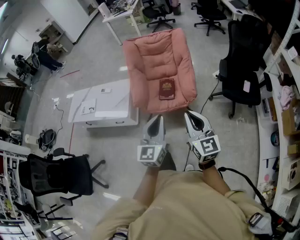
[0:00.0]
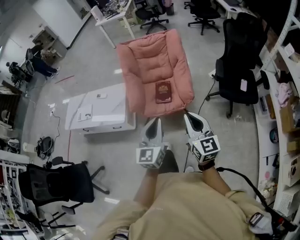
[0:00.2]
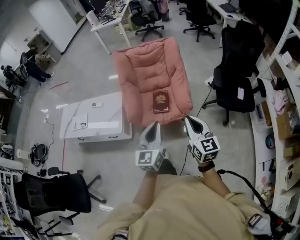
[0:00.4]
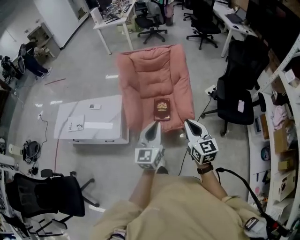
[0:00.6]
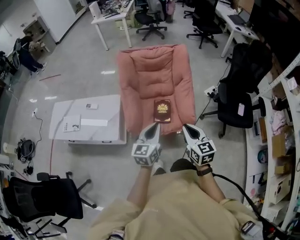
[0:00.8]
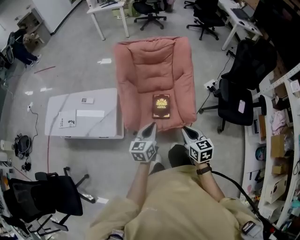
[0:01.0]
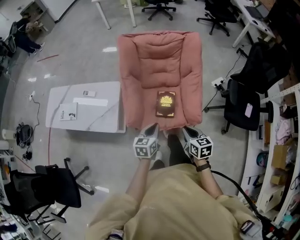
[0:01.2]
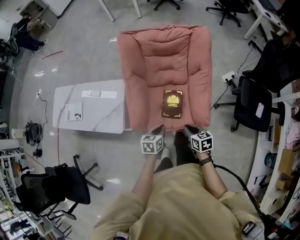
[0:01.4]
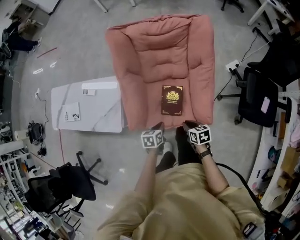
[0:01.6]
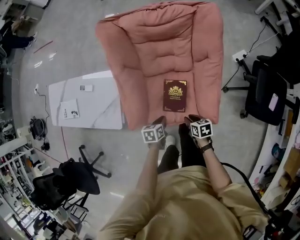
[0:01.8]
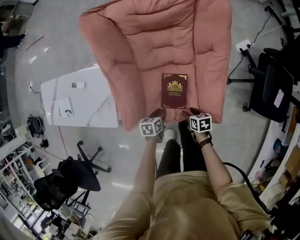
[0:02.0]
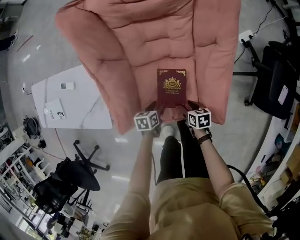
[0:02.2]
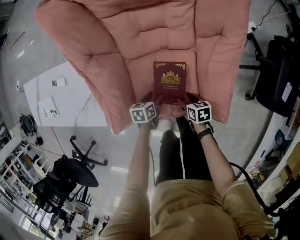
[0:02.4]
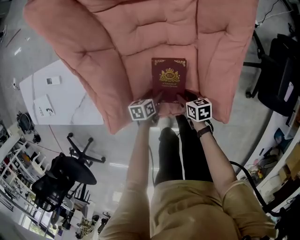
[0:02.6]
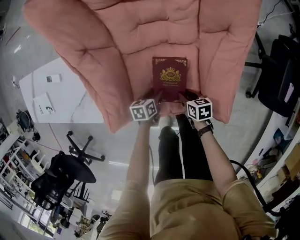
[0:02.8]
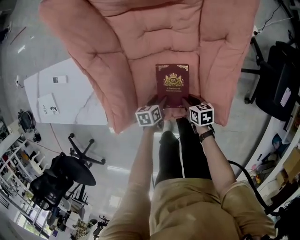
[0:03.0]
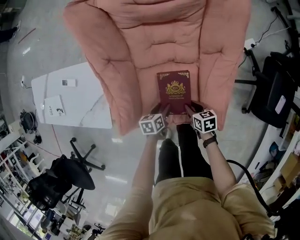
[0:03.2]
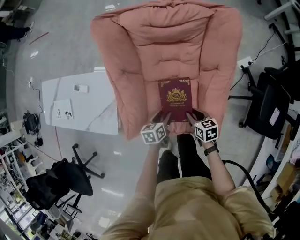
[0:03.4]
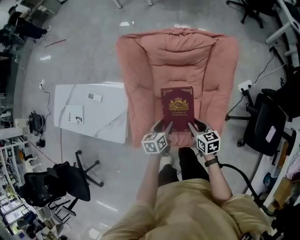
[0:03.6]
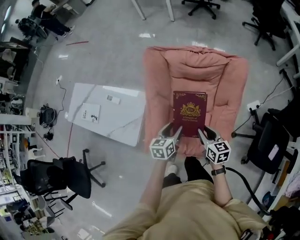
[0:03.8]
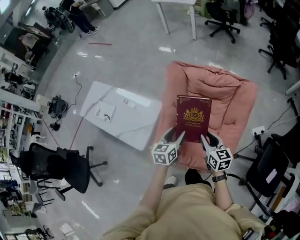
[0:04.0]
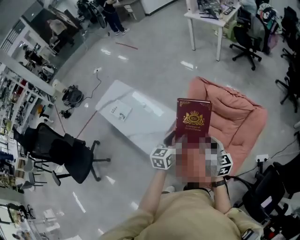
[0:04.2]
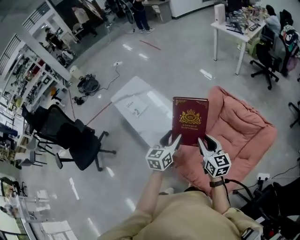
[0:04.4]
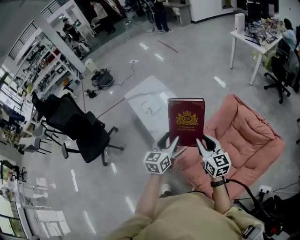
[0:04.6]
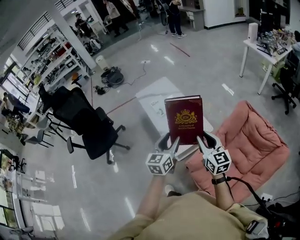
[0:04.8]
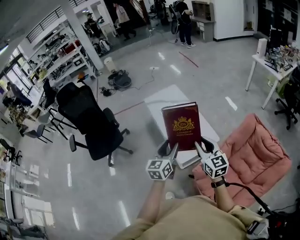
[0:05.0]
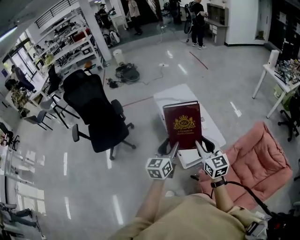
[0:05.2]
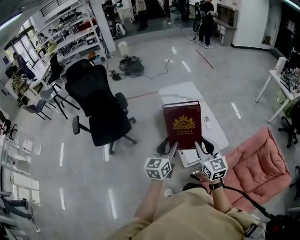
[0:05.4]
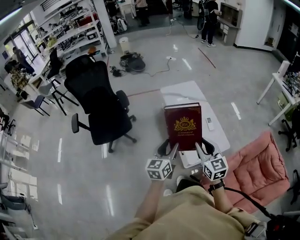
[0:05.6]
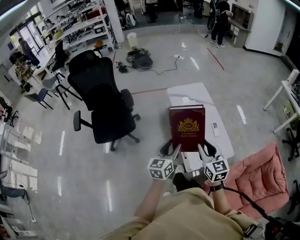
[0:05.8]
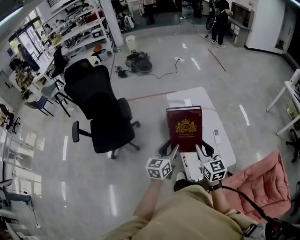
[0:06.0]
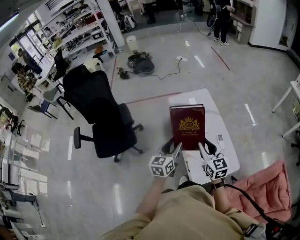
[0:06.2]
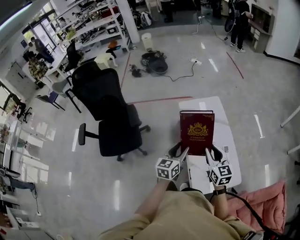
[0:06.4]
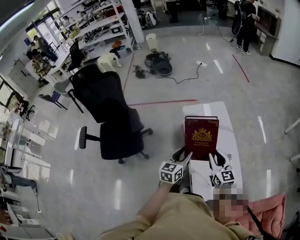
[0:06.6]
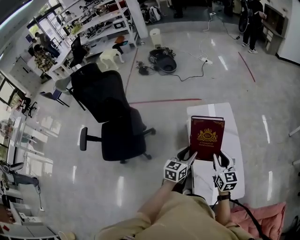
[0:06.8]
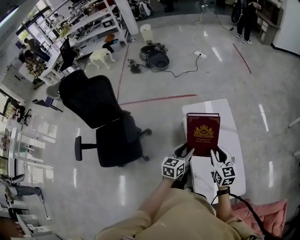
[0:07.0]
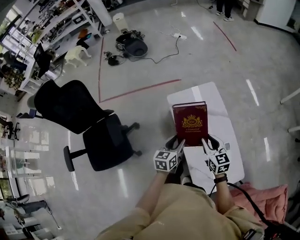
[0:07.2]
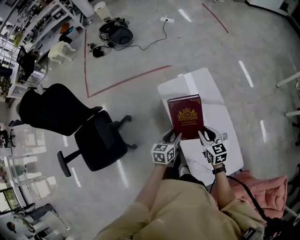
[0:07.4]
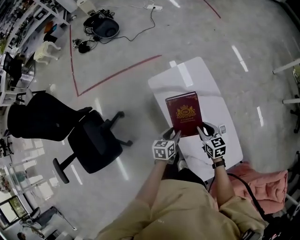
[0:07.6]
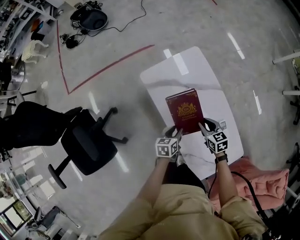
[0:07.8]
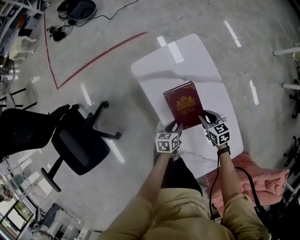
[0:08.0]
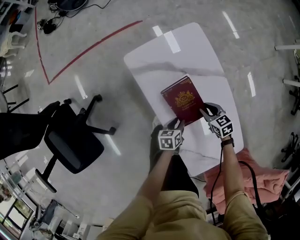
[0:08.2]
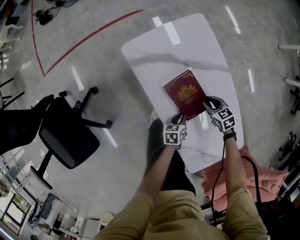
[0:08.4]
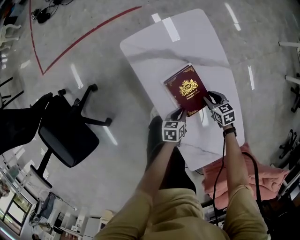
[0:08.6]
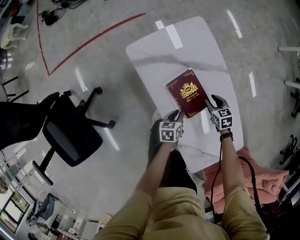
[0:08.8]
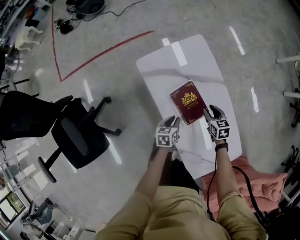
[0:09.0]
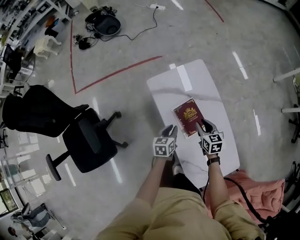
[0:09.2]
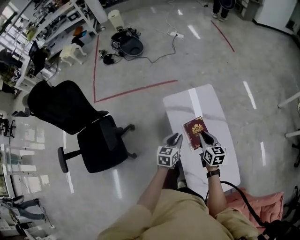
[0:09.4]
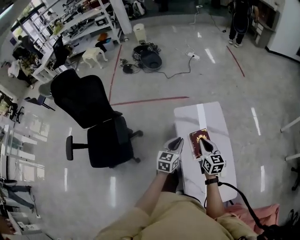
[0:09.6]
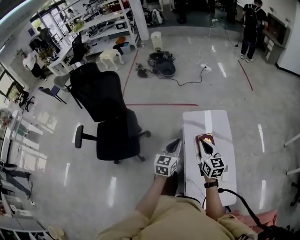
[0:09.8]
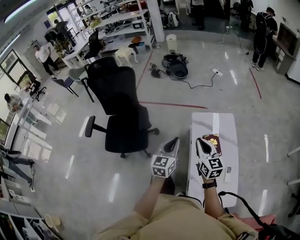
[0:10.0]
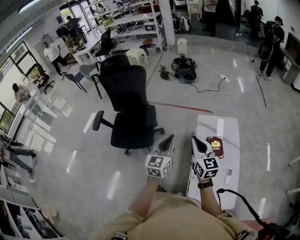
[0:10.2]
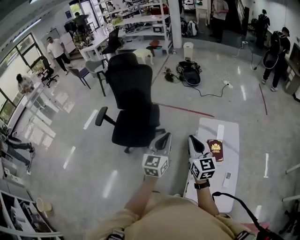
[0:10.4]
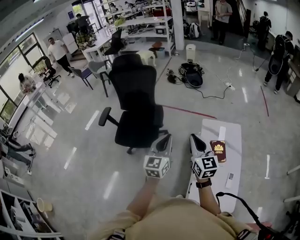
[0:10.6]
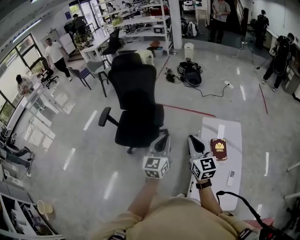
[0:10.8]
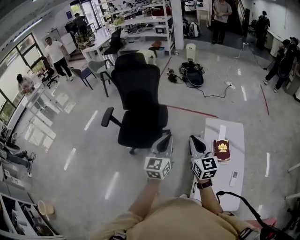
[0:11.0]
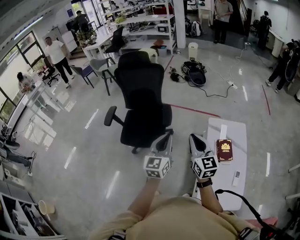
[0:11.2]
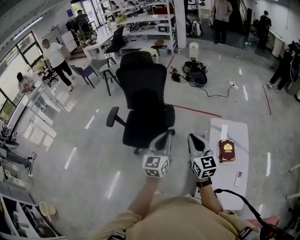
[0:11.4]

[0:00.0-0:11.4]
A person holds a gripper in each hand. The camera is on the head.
0:00.0 to 0:01.4: The grippers both shift forward and downward by roughly 50 cm. The left gripper points its fingers about 40 degrees further downward. Meanwhile the right gripper tilts its fingers about 40 degrees downward.
0:01.4 to 0:02.8: Both grippers travel together downward, roughly 40 cm. The right gripper rotates roughly 20 degrees, and opens, then closes again; the left gripper rotates approximately 20 degrees, and opens up.
0:02.8 to 0:04.2: The two grippers go approximately 60 cm upward. The right gripper points its fingers approximately 40 degrees further upward. The left gripper points its fingers roughly 30 degrees further upward.
0:04.2 to 0:05.6: The pair of grippers is taken roughly 50 cm. The right gripper changes its angle by some 50 degrees, while the left gripper rotates approximately 40 degrees.
0:05.6 to 0:07.2: The two grippers travel together, forward, some 60 cm. The left gripper changes its angle by roughly 20 degrees.
0:07.2 to 0:08.6: The two grippers go about 40 cm downward. The left gripper turns by about 30 degrees, and closes; the right gripper tips its fingers downward by some 30 degrees.
0:08.6 to 0:10.0: Both grippers move upward, approximately 60 cm. The left gripper points its fingers some 30 degrees further upward. Meanwhile the right gripper tilts its fingers approximately 50 degrees upward, and closes.
0:10.0 to 0:11.4: The two grippers go approximately 25 cm to the left.

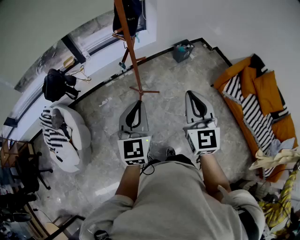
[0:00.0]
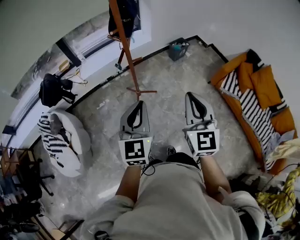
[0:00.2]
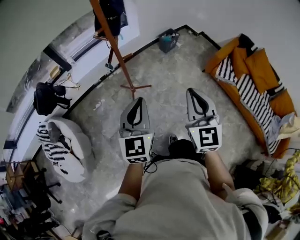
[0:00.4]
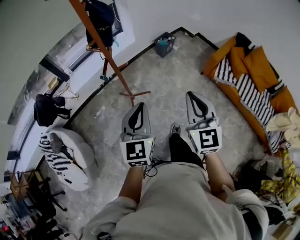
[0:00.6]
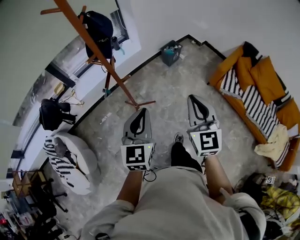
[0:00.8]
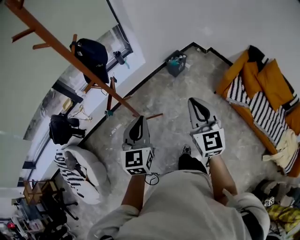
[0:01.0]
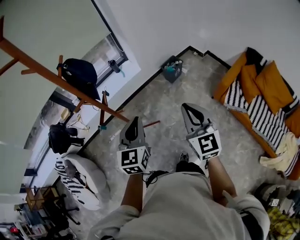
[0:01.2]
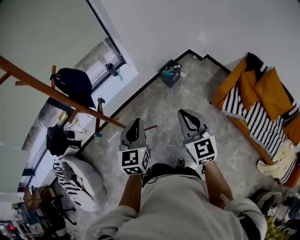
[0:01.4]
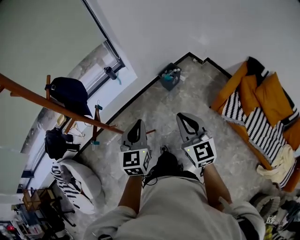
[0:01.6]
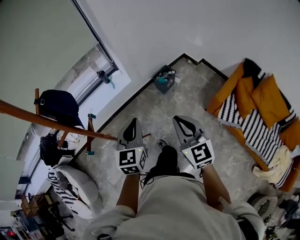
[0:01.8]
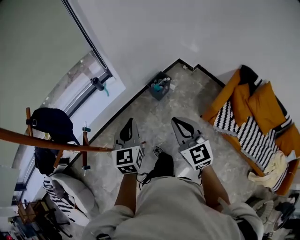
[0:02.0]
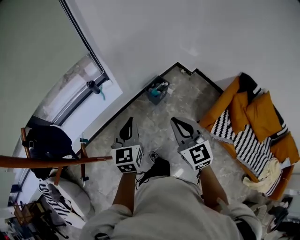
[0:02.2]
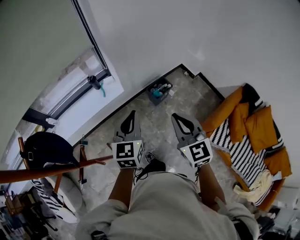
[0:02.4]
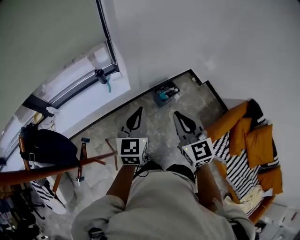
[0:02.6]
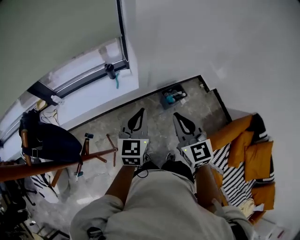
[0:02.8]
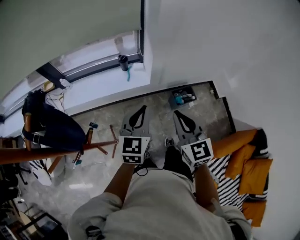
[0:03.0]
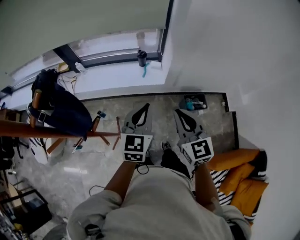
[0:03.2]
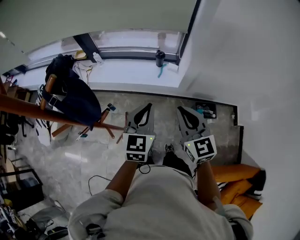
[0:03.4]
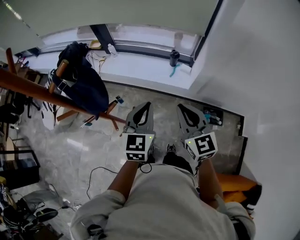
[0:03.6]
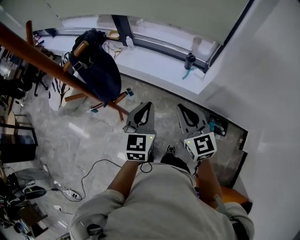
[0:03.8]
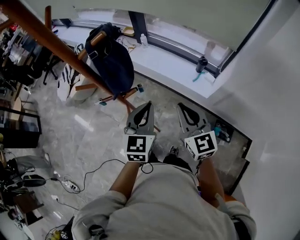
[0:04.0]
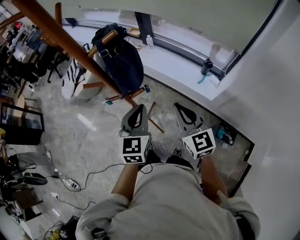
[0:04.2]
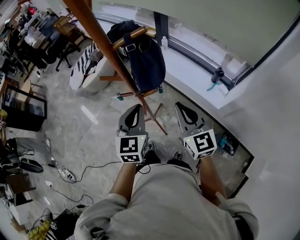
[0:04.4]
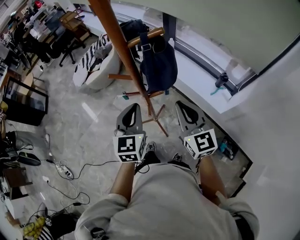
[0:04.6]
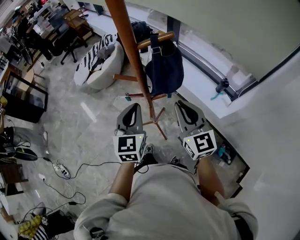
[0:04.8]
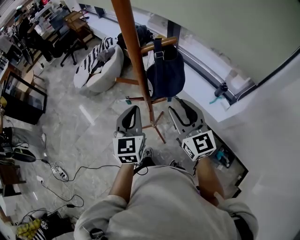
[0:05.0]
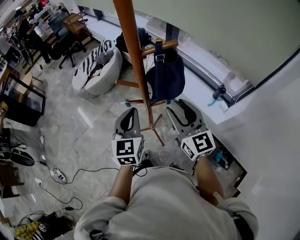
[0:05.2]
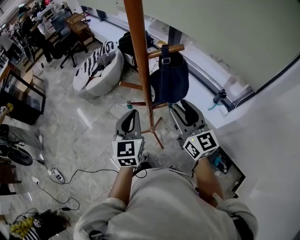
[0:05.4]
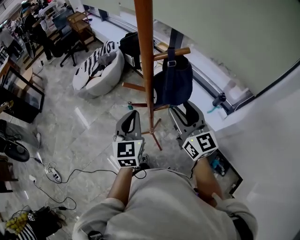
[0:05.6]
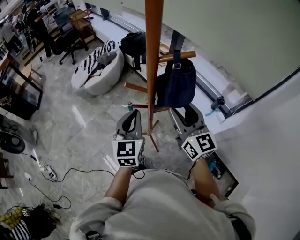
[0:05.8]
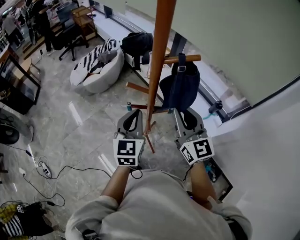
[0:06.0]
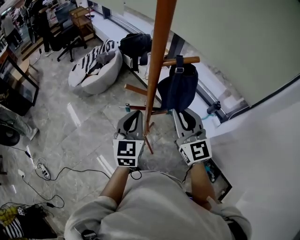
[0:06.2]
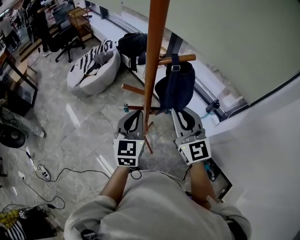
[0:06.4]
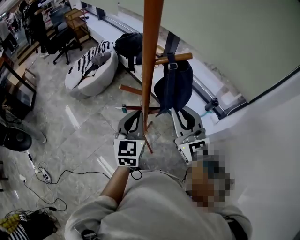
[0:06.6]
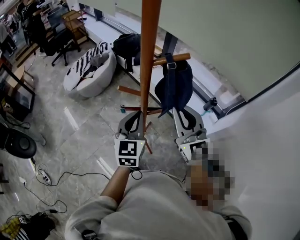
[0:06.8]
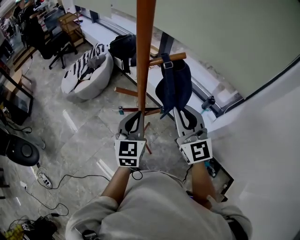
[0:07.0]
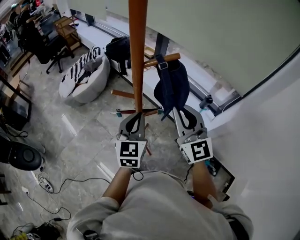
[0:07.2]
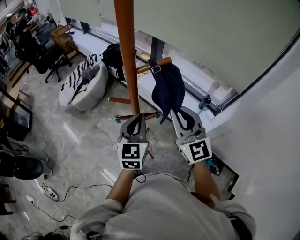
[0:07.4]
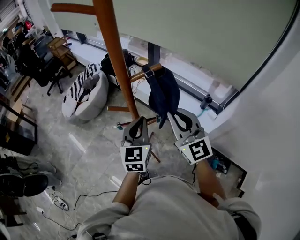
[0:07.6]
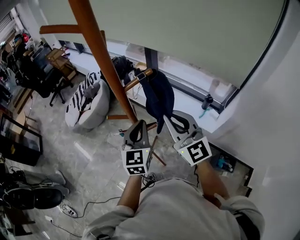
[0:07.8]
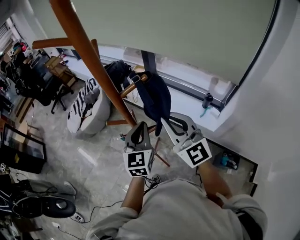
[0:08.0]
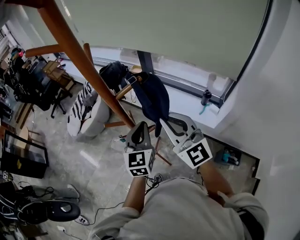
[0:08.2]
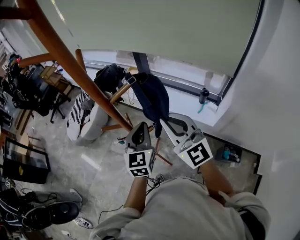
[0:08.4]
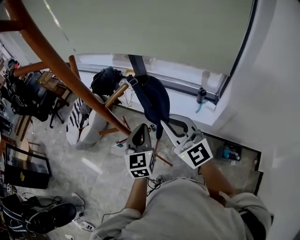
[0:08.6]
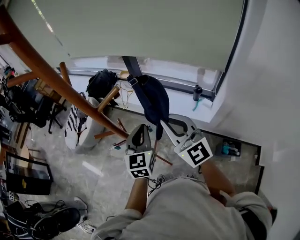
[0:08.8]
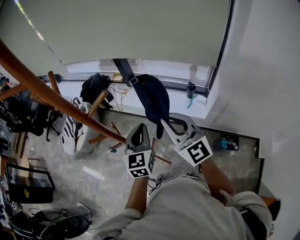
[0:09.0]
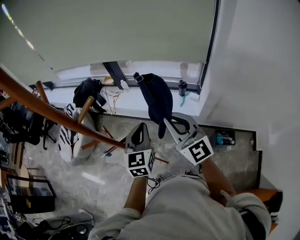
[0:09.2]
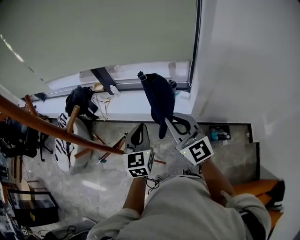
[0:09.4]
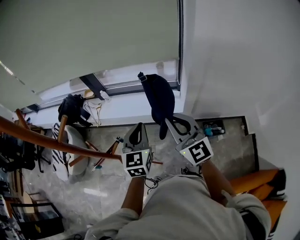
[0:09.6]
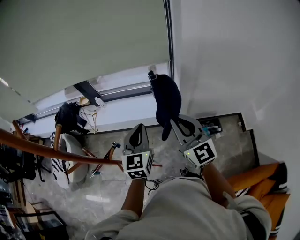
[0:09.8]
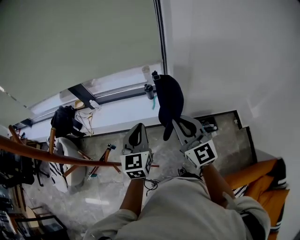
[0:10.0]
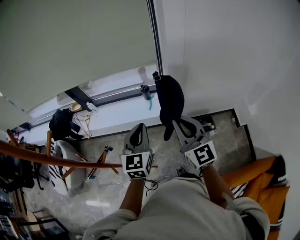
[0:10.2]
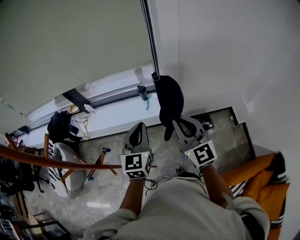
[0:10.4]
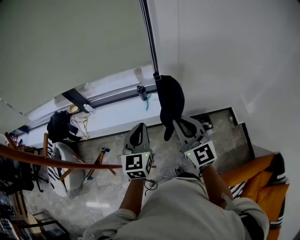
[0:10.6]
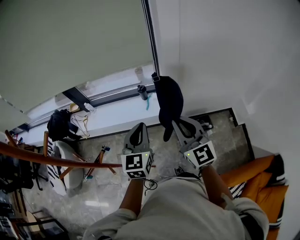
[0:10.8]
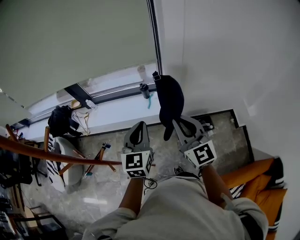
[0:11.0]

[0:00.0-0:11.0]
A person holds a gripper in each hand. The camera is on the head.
0:00.0 to 0:01.6: Both grippers move forward and to the right, approximately 35 cm.
0:01.6 to 0:03.2: The left gripper ends up about 35 cm from where it was, and rotates approximately 30 degrees, while the right gripper moves some 40 cm, and rotates some 30 degrees.
0:03.2 to 0:04.8: The right gripper shifts by roughly 25 cm, and rotates some 50 degrees, while the left gripper moves about 30 cm, and rotates some 60 degrees.
0:04.8 to 0:06.2: The right gripper ends up about 5 cm from where it was, and opens, then closes again.
0:06.2 to 0:07.8: The left gripper heads to the right, covering about 5 cm, while the right gripper moves about 5 cm.
0:07.8 to 0:09.4: The left gripper ends up about 20 cm from where it was, and turns by about 20 degrees. The right gripper ends up roughly 20 cm from where it was, and rotates approximately 30 degrees.
0:09.4 to 0:11.0: Both grippers move to the right, approximately 15 cm.

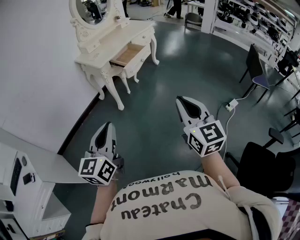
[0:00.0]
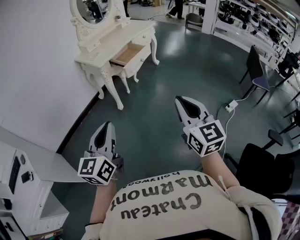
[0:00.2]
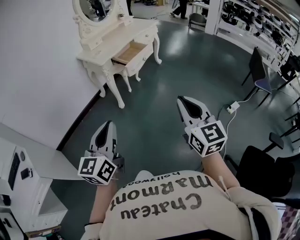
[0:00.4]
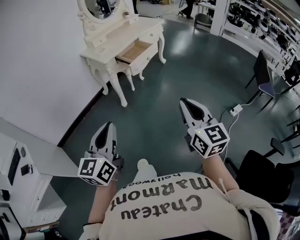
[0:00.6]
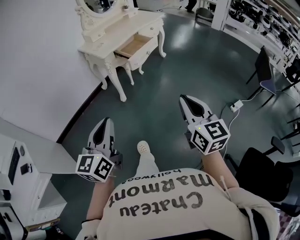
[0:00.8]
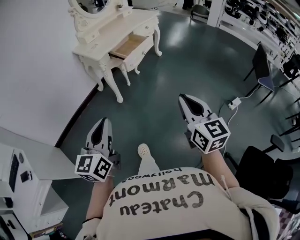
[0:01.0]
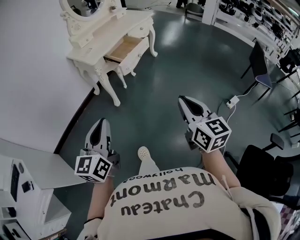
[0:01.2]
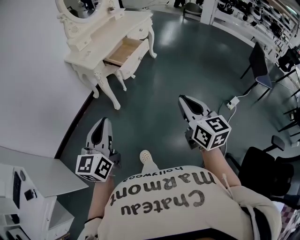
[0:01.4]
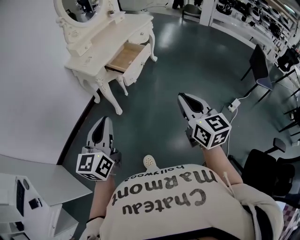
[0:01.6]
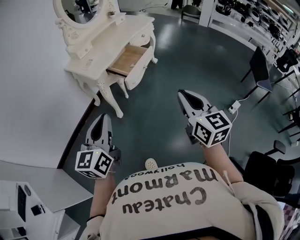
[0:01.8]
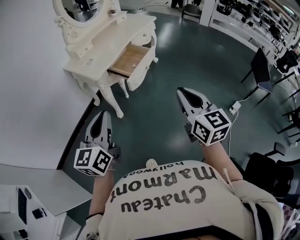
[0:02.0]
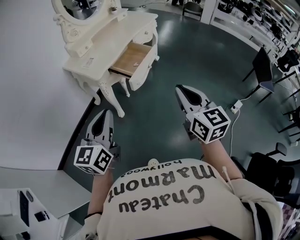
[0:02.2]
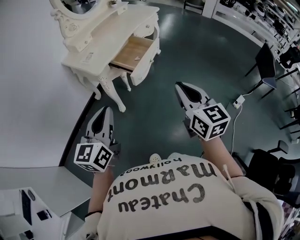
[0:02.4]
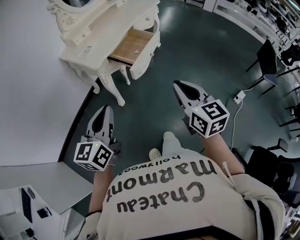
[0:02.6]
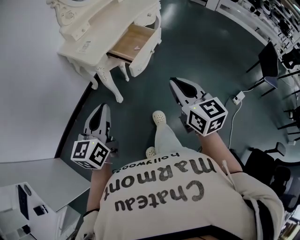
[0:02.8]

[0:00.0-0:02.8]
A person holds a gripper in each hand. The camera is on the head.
0:00.0 to 0:01.4: The grippers both shift forward by roughly 15 cm.
0:01.4 to 0:02.8: Both grippers travel together forward and to the left, roughly 20 cm.
